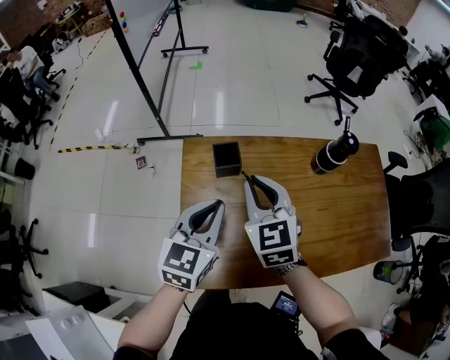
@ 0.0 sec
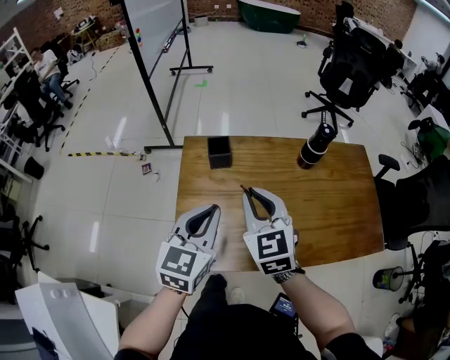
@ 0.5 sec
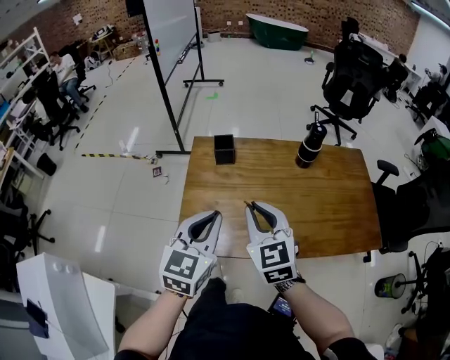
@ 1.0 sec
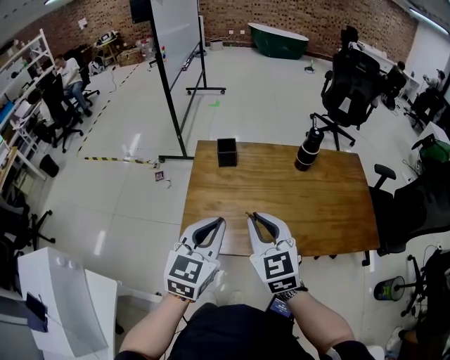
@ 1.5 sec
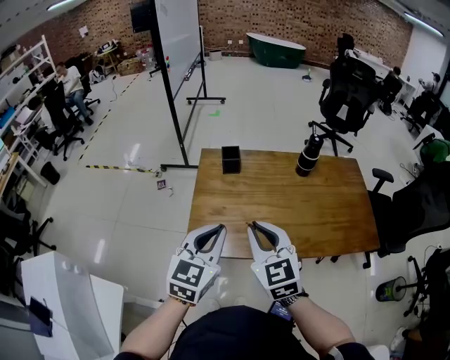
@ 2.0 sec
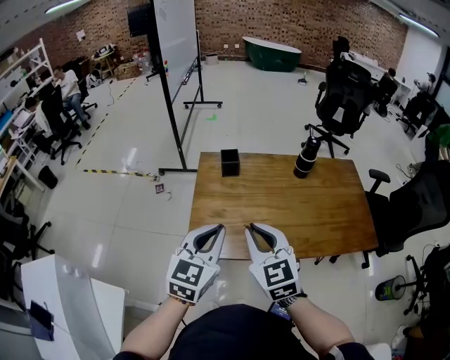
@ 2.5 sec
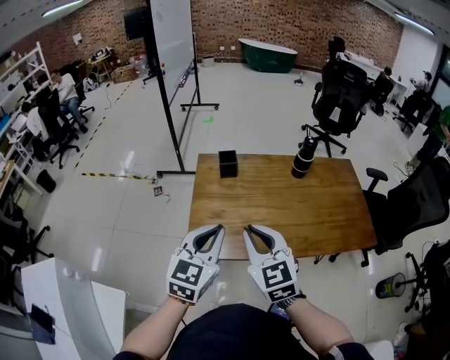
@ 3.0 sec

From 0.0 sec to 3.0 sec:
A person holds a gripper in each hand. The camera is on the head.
From 0.0 sec to 1.5 sec: The two grippers go some 30 cm backward.
From 1.5 sec to 3.0 sec: The right gripper changes place by some 5 cm.

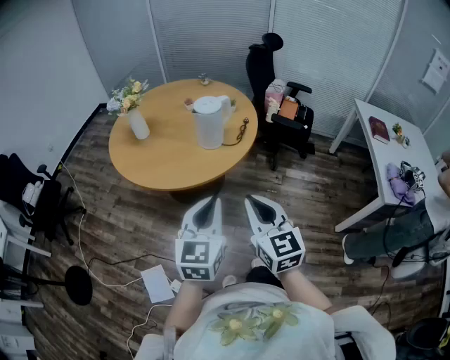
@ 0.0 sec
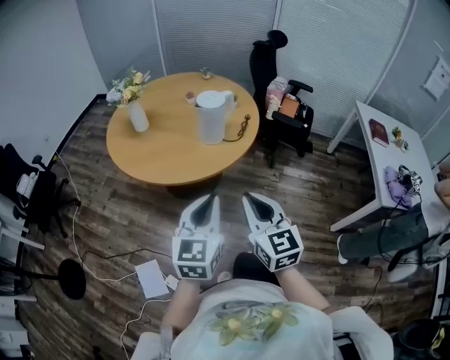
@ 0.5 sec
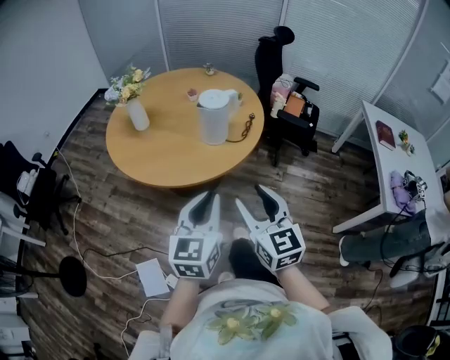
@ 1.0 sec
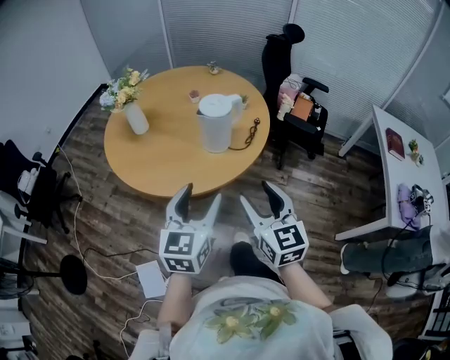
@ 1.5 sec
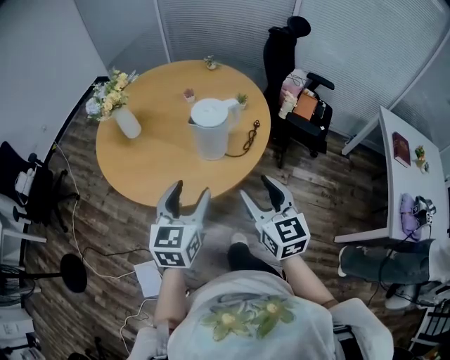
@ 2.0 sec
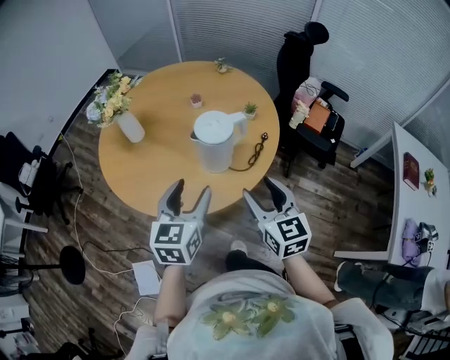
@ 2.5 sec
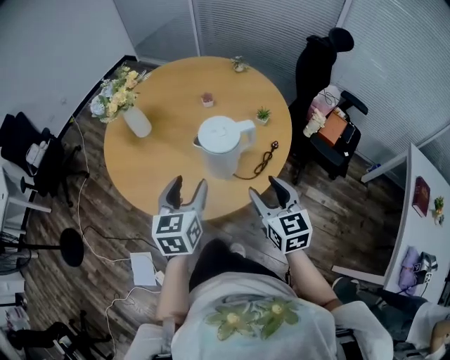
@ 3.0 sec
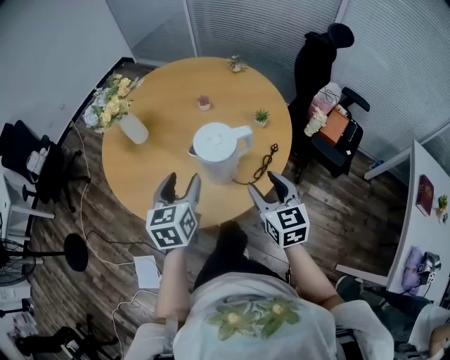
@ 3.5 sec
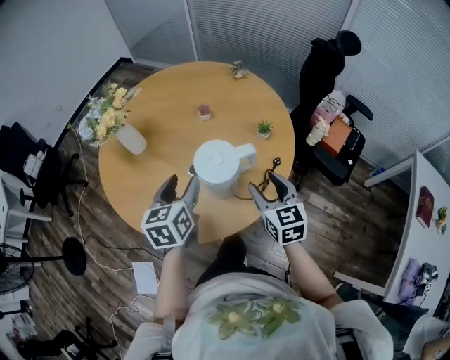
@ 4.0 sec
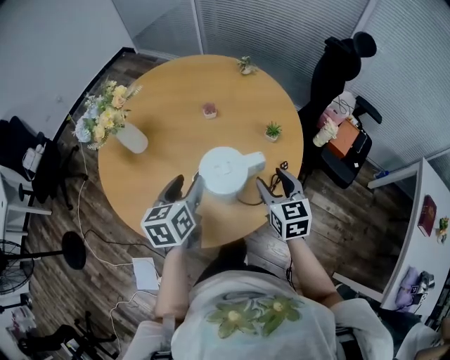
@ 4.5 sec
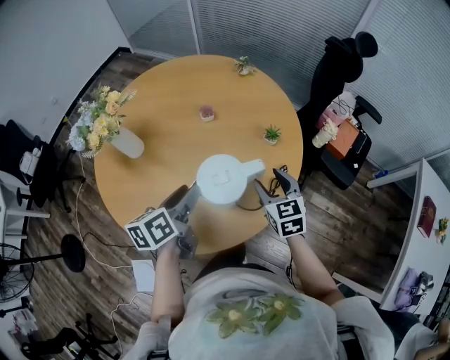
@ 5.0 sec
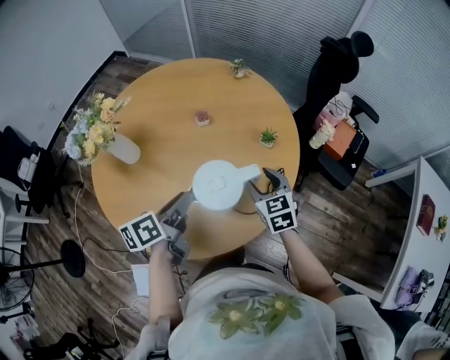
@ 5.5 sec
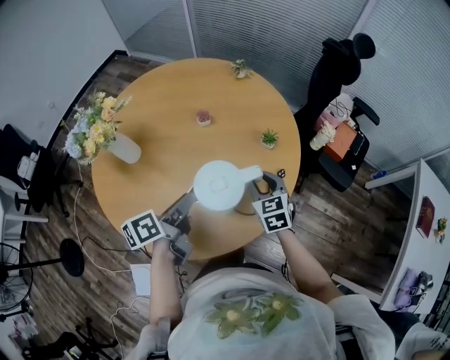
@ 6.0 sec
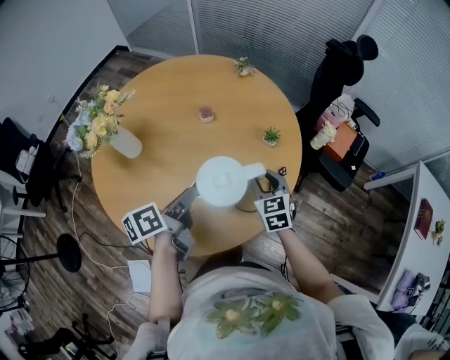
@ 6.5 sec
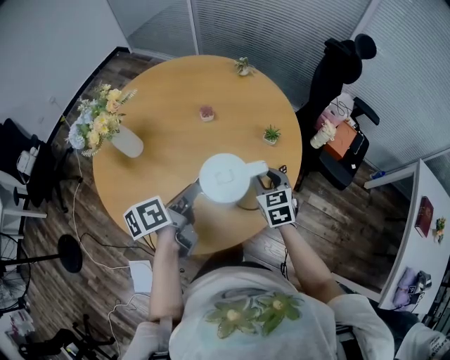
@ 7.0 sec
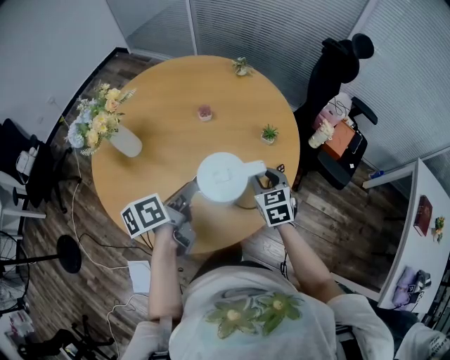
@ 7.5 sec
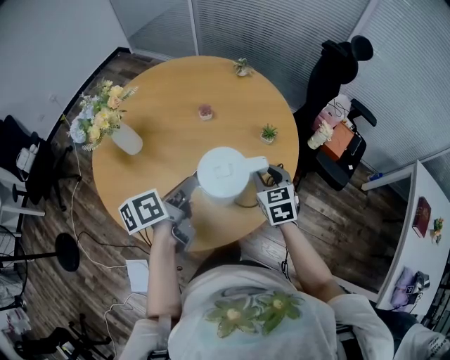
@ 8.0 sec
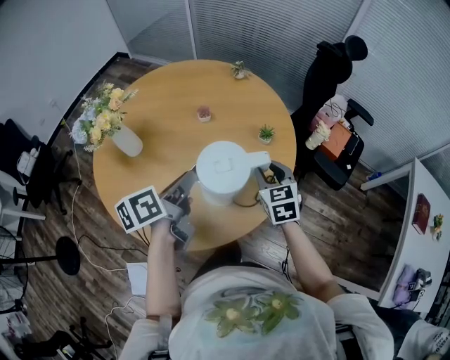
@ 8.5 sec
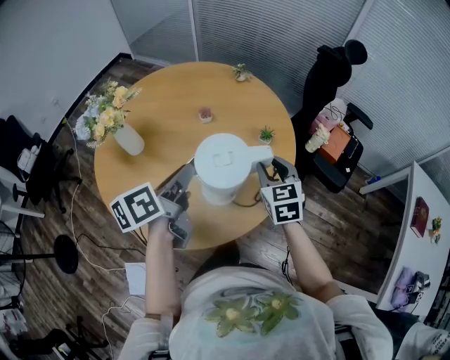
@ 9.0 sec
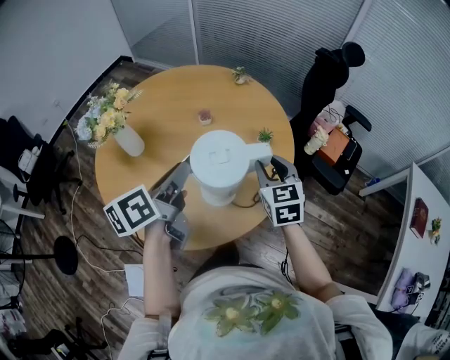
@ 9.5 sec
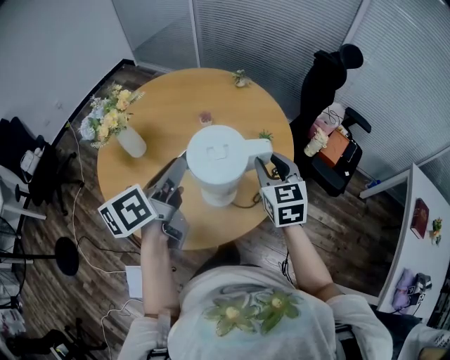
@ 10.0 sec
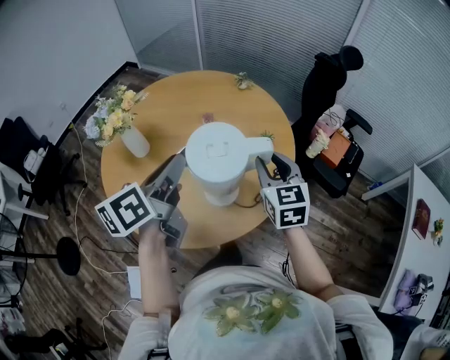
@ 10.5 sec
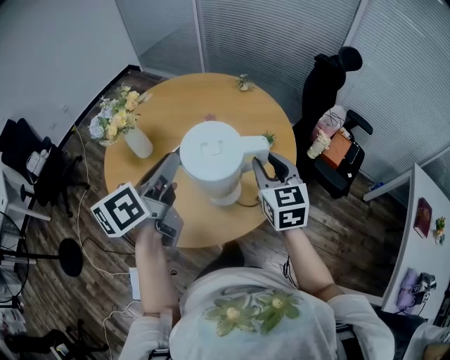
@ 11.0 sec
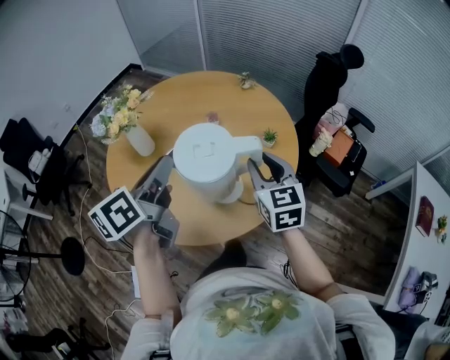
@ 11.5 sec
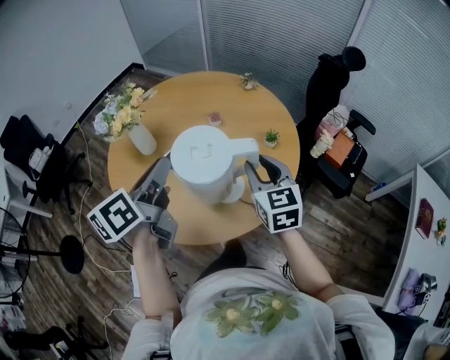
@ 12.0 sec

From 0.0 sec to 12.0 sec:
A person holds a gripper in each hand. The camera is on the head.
From 0.0 sec to 2.0 sec: The grippers both shift forward by about 25 cm. The right gripper opens up. Meanwhile the left gripper opens.
From 2.0 sec to 4.0 sec: The grippers both shift forward by roughly 25 cm. The left gripper turns by some 30 degrees.
From 4.0 sec to 6.0 sec: The left gripper changes place by roughly 5 cm, turns by about 50 degrees, and closes up, while the right gripper travels forward and downward by about 15 cm, and closes.
From 6.0 sec to 8.0 sec: The grippers make only small movements.
From 8.0 sec to 10.0 sec: The two grippers go roughly 15 cm upward.
From 10.0 sec to 12.0 sec: Both grippers travel together to the left, roughly 5 cm.

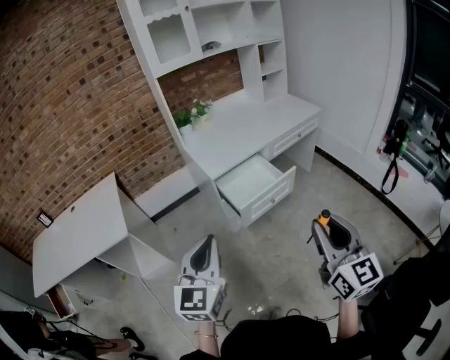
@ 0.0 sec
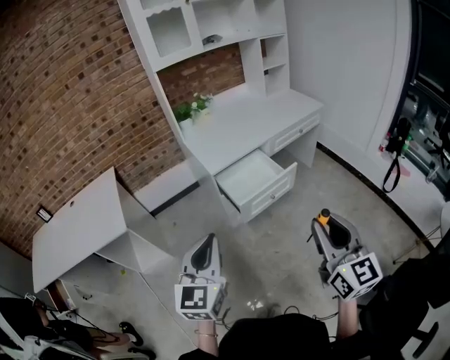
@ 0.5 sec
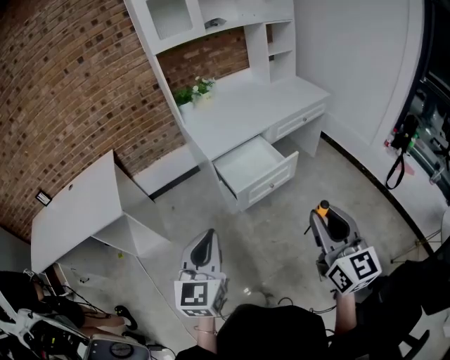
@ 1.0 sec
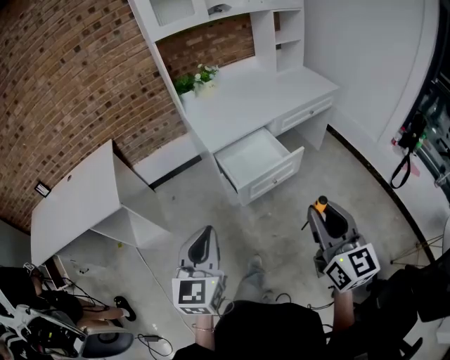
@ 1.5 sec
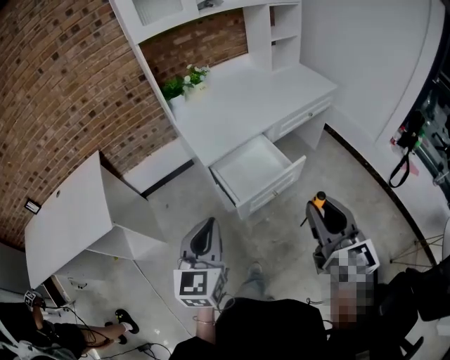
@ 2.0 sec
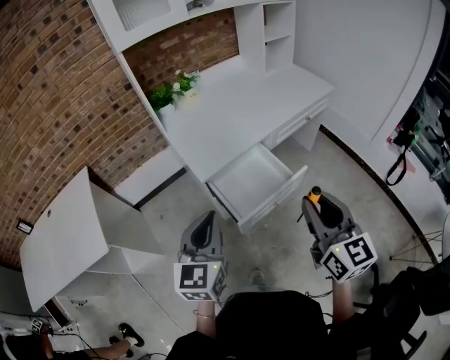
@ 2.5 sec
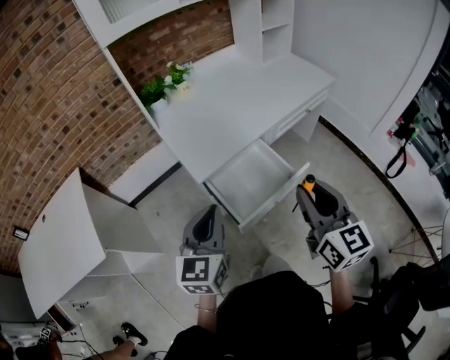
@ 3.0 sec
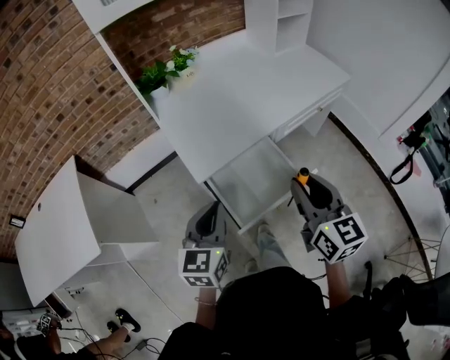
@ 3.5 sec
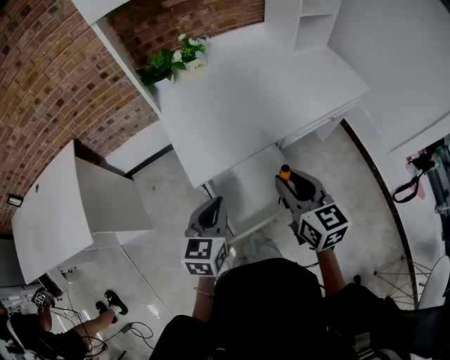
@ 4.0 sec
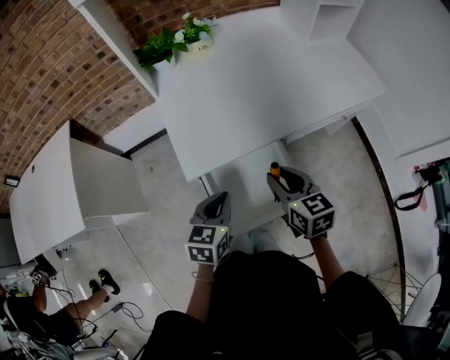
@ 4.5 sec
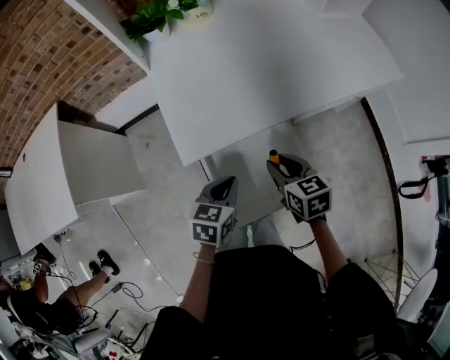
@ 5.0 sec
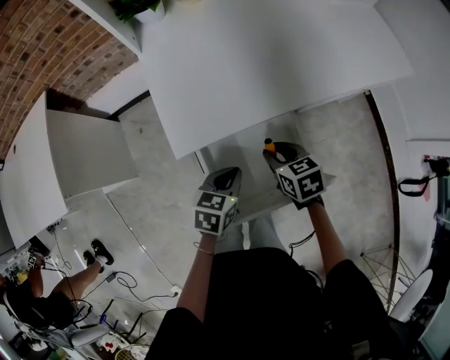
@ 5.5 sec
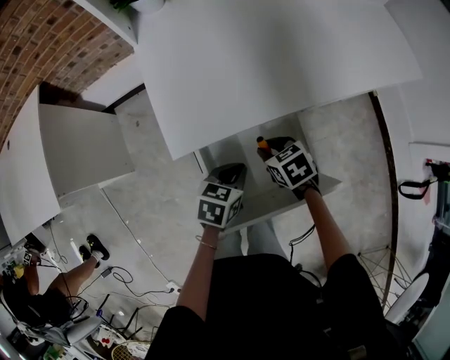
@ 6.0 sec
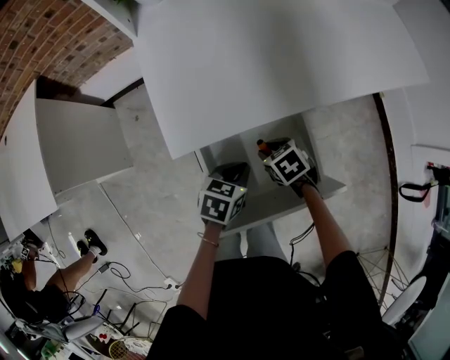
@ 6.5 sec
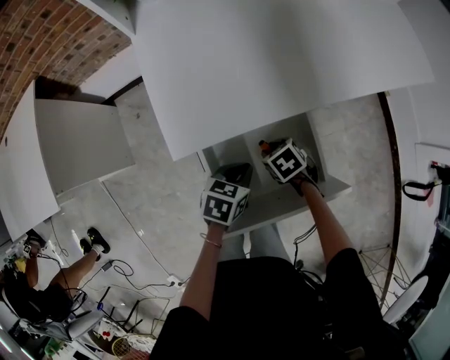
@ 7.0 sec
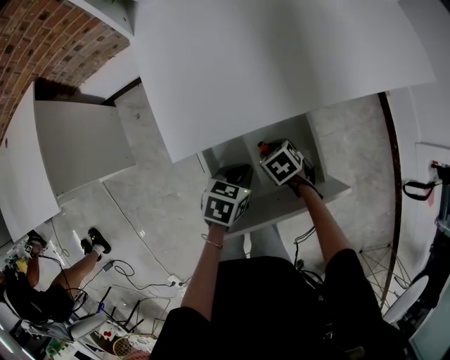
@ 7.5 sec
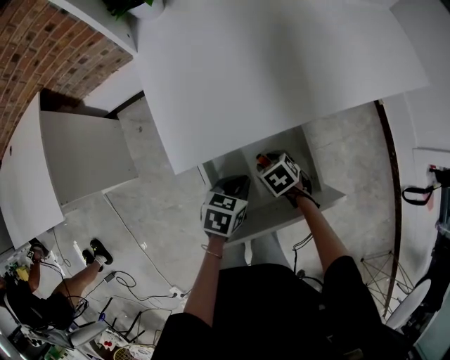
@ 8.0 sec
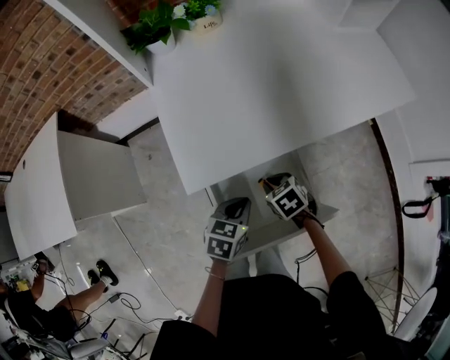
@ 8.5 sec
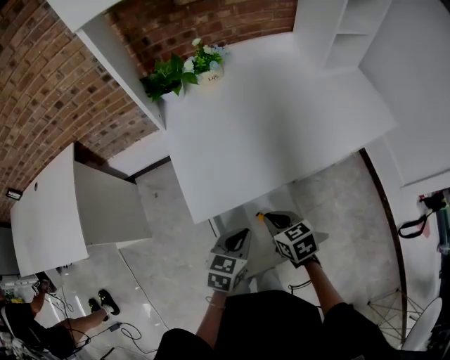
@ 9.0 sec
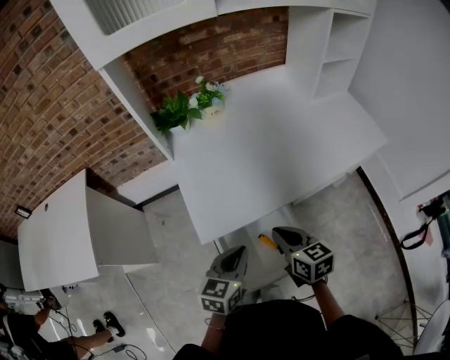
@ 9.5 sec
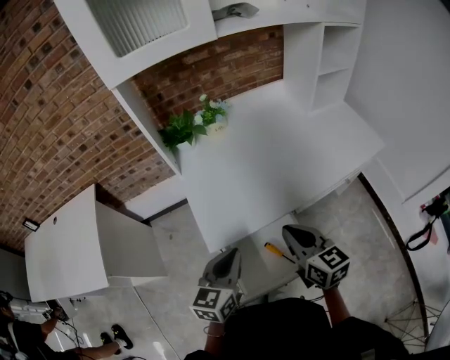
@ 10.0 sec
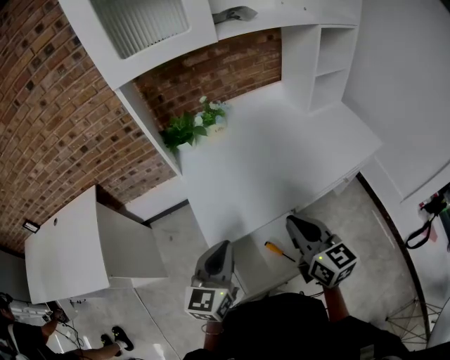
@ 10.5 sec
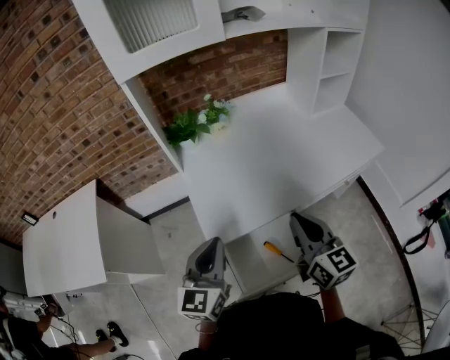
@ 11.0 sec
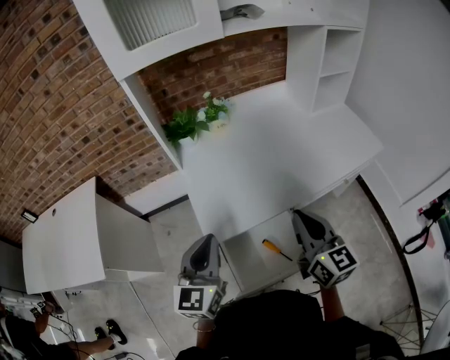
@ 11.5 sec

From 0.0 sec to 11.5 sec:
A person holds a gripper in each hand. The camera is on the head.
From 0.0 sec to 2.0 sec: Both grippers travel together forward, about 15 cm.
From 2.0 sec to 4.0 sec: The left gripper shifts about 30 cm forward and downward, while the right gripper is displaced forward by about 35 cm, and turns by some 20 degrees.
From 4.0 sec to 6.0 sec: Both grippers move downward, approximately 25 cm. The right gripper points its fingers some 40 degrees further downward. The left gripper changes its angle by about 30 degrees.
From 6.0 sec to 7.5 sec: The right gripper goes about 10 cm downward.
From 7.5 sec to 9.5 sec: Both grippers travel together upward, approximately 25 cm. The right gripper tips its fingers upward by some 40 degrees, and closes up. Meanwhile the left gripper swivels approximately 30 degrees.
From 9.5 sec to 11.5 sec: The right gripper heads upward, covering approximately 15 cm, and rotates some 30 degrees, while the left gripper travels upward and to the left by approximately 15 cm, and turns by approximately 30 degrees.
